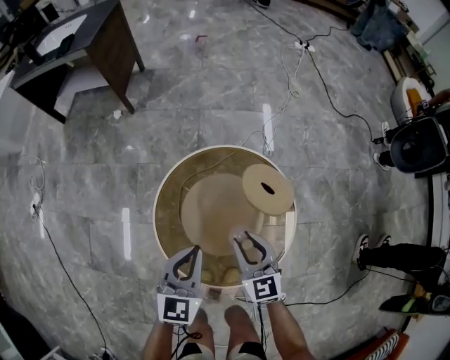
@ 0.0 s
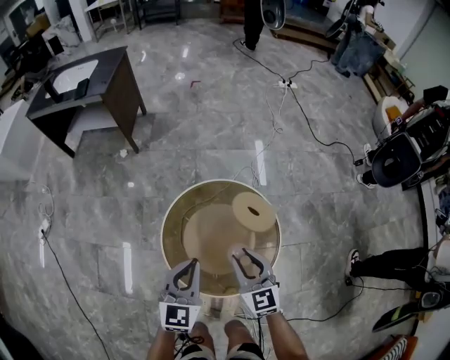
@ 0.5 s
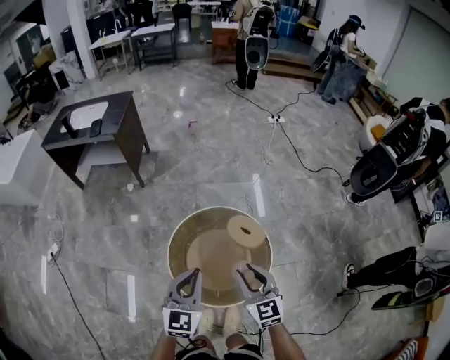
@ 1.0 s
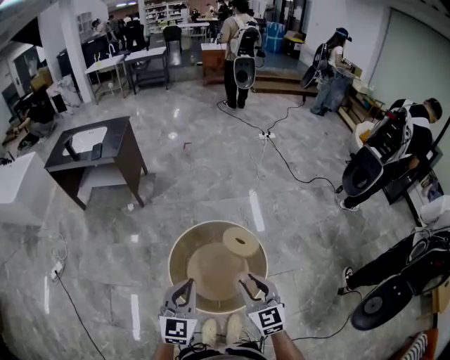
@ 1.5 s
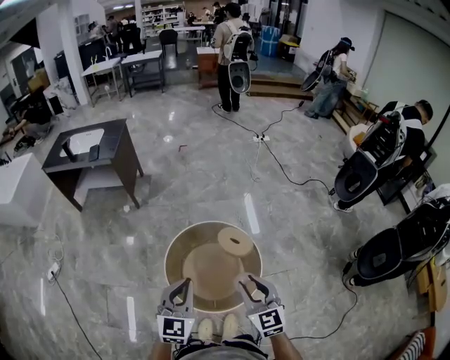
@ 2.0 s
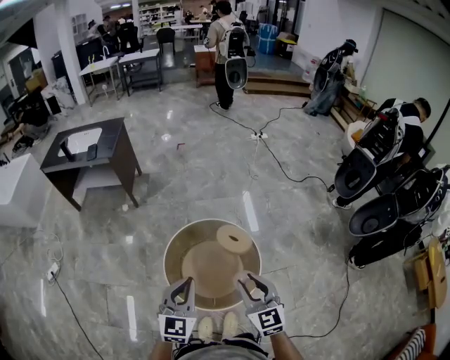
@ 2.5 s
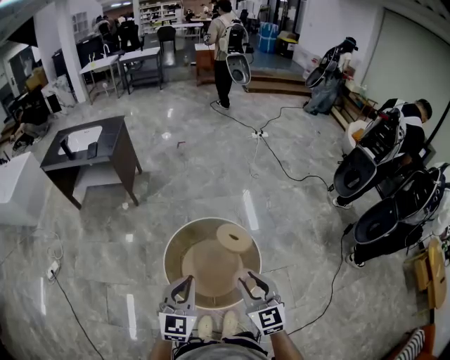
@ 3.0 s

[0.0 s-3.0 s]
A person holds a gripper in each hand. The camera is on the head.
0.0 to 1.5 s: The two grippers go approximately 35 cm upward and backward.
1.5 to 3.0 s: There are only small adjustments of the grippers.

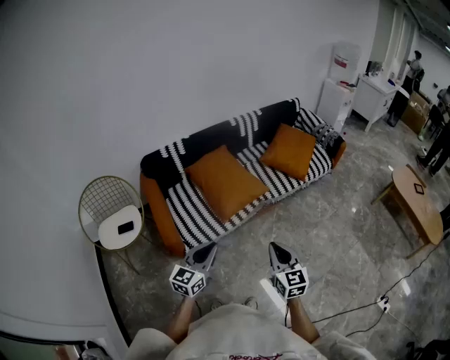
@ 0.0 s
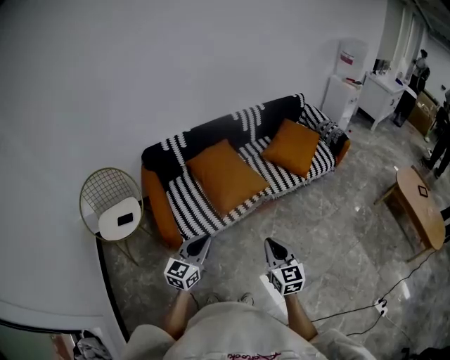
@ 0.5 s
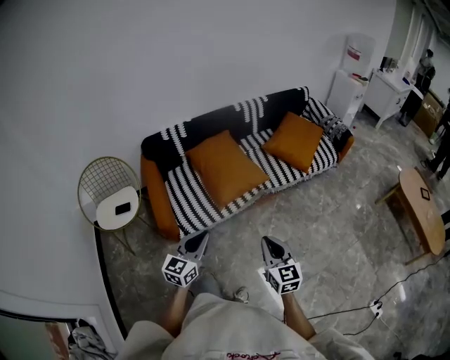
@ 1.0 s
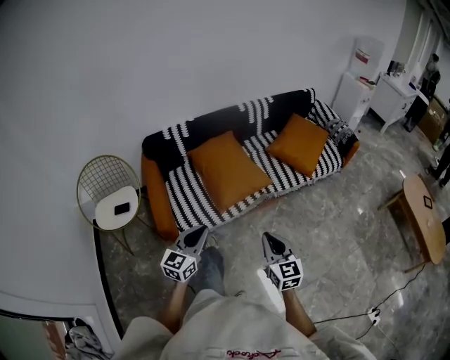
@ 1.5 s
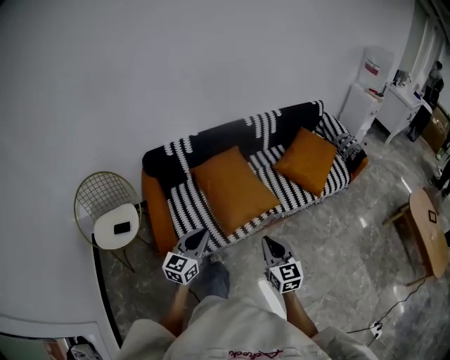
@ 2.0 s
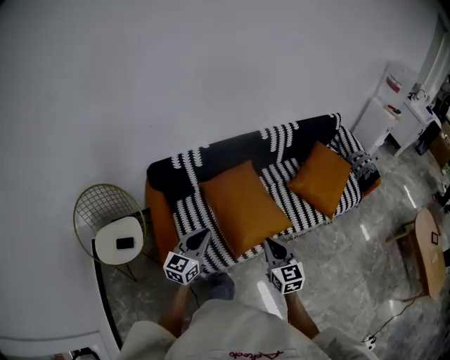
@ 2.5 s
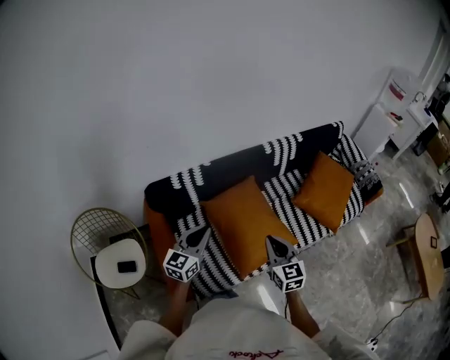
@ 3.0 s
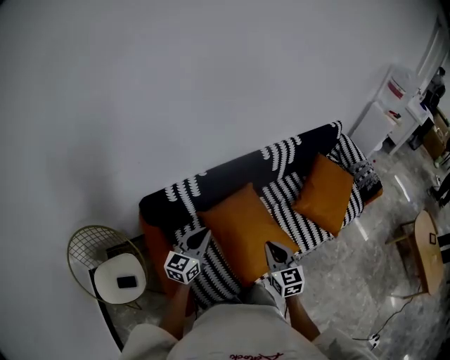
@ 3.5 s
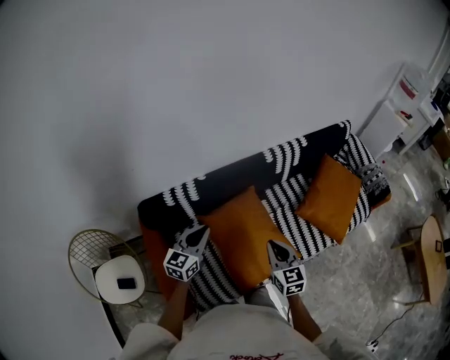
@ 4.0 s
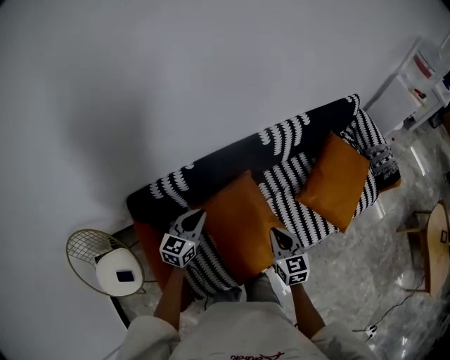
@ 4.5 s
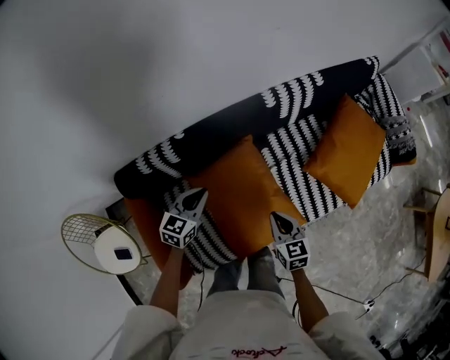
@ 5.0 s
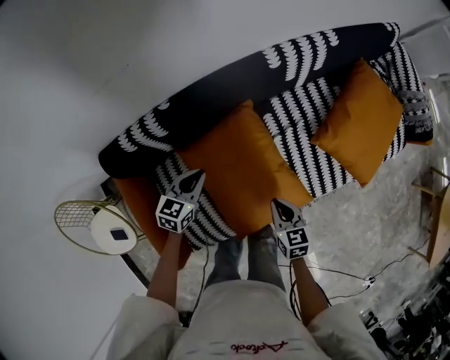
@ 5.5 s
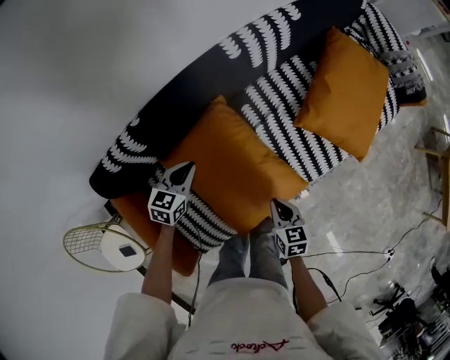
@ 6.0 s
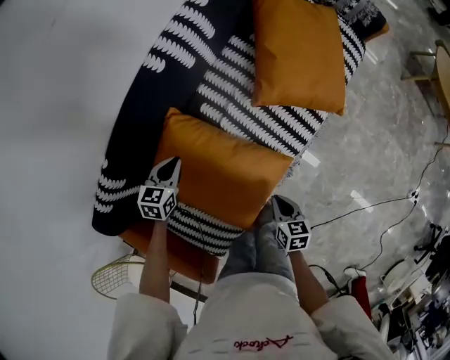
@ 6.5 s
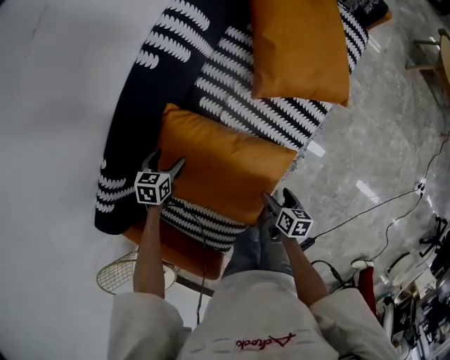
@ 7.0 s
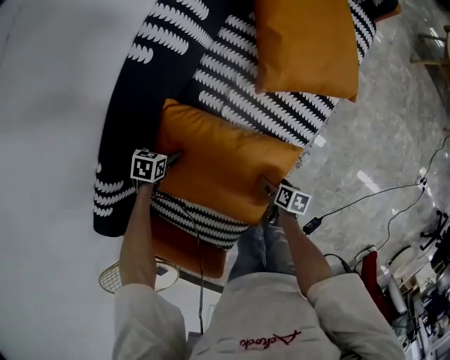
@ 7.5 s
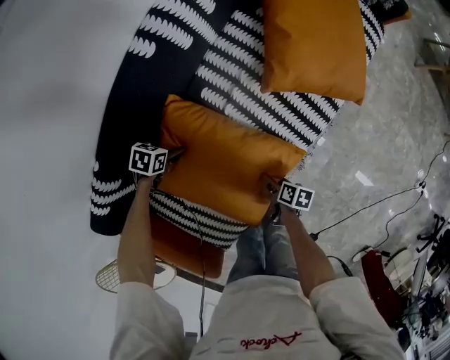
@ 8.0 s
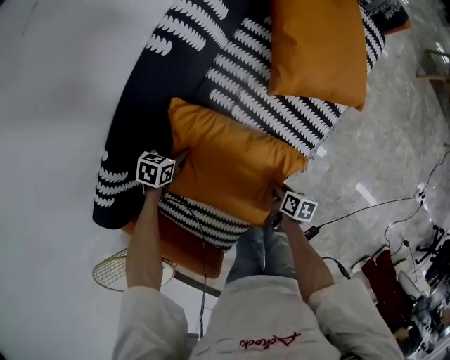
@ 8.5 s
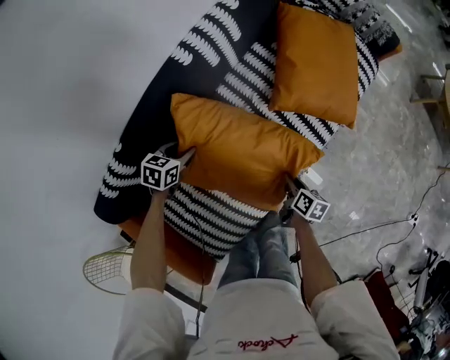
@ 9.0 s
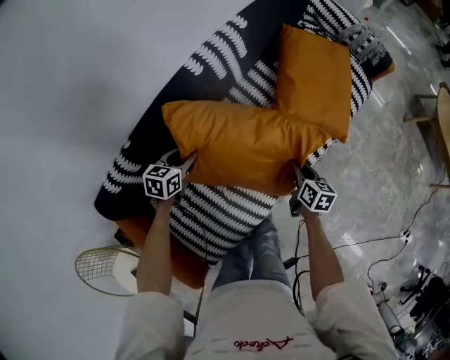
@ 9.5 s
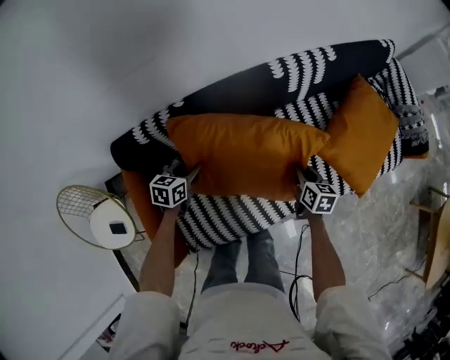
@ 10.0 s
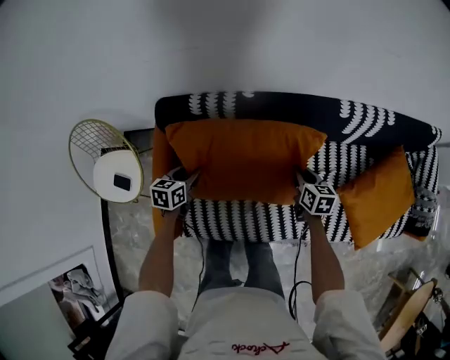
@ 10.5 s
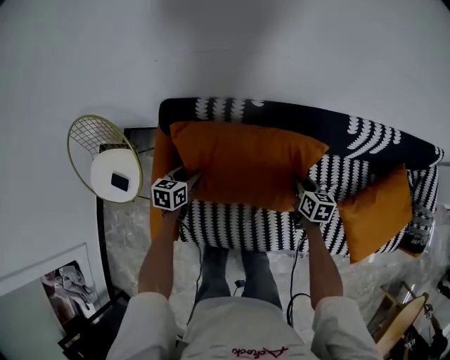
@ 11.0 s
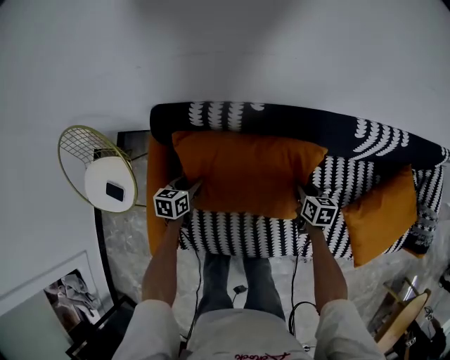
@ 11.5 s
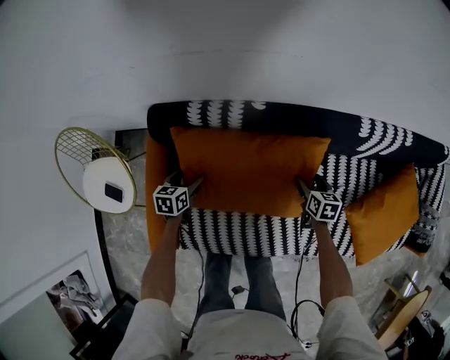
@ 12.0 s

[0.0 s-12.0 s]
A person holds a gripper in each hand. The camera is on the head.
0.0 to 2.0 s: Both grippers travel together forward, some 20 cm.
2.0 to 4.0 s: The pair of grippers is taken forward, approximately 50 cm.
4.0 to 6.0 s: The right gripper moves downward, roughly 30 cm, and turns by roughly 40 degrees, while the left gripper goes about 35 cm downward and forward, and points its fingers roughly 30 degrees further downward.
6.0 to 8.0 s: Both grippers travel together downward, approximately 25 cm. The left gripper rotates approximately 40 degrees, and opens, while the right gripper rotates around the line of its fingers by some 50 degrees, clockwise from behind, and opens up.
8.0 to 10.0 s: The grippers both shift upward by roughly 25 cm. The left gripper rotates about 60 degrees, and closes up; the right gripper rolls counterclockwise, seen from behind, by about 60 degrees, and closes.
10.0 to 12.0 s: The right gripper ends up about 25 cm from where it was, swivels roughly 30 degrees, and opens up, while the left gripper ends up about 25 cm from where it was, swivels roughly 30 degrees, and opens up.

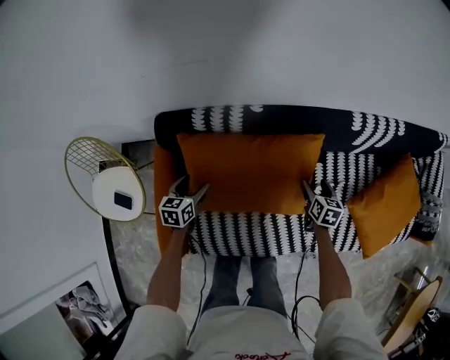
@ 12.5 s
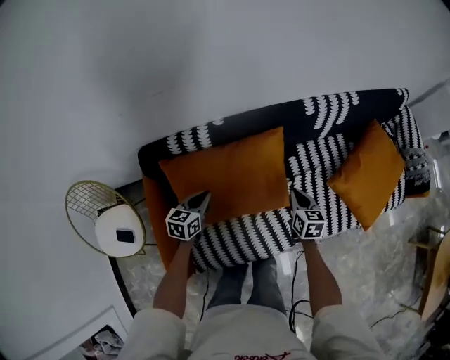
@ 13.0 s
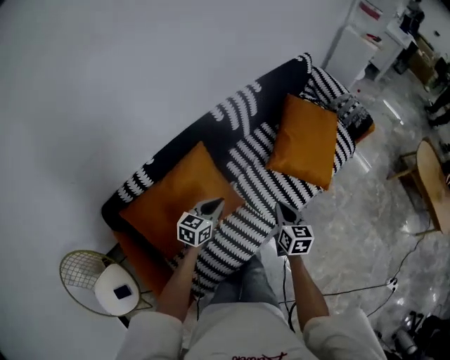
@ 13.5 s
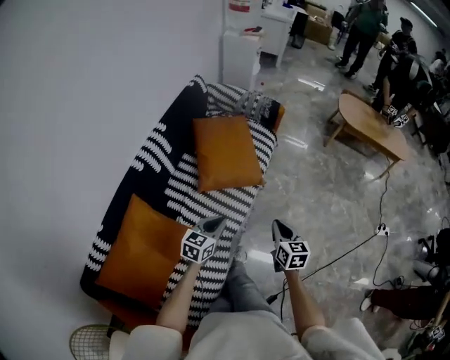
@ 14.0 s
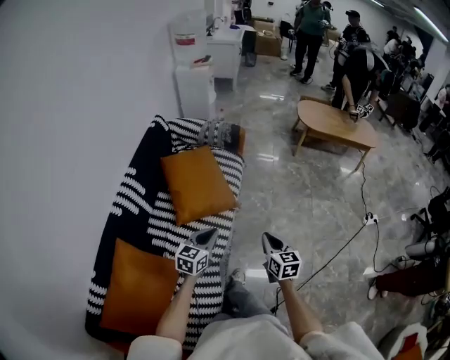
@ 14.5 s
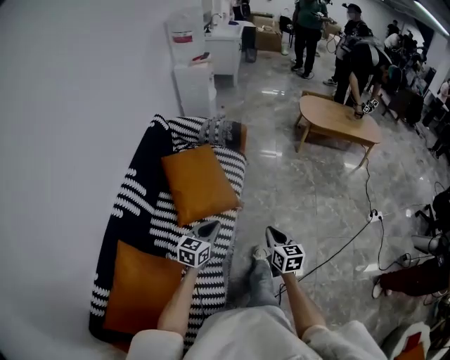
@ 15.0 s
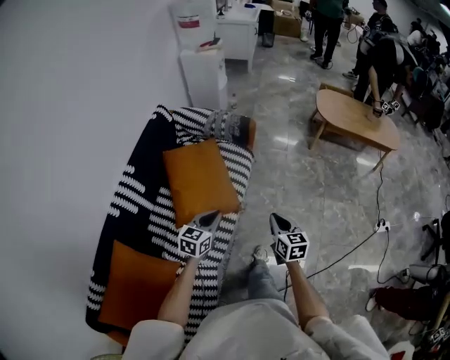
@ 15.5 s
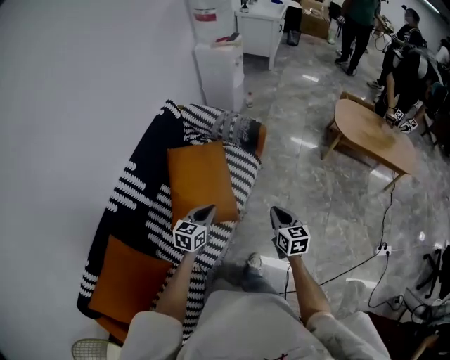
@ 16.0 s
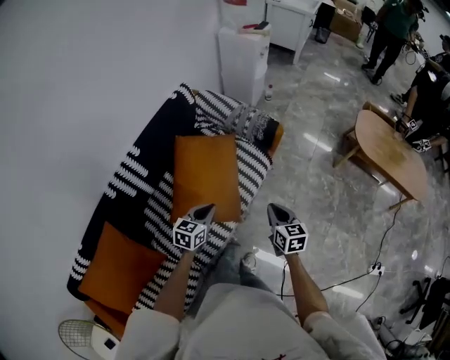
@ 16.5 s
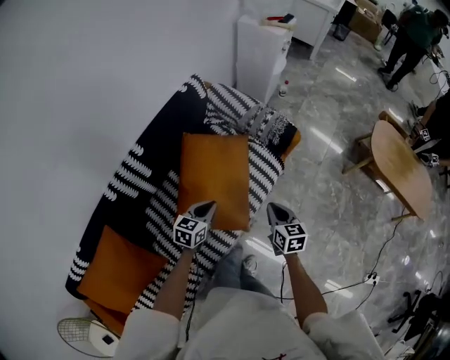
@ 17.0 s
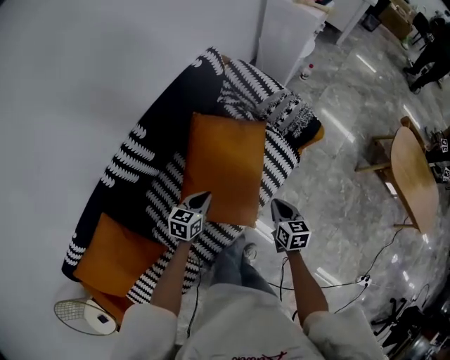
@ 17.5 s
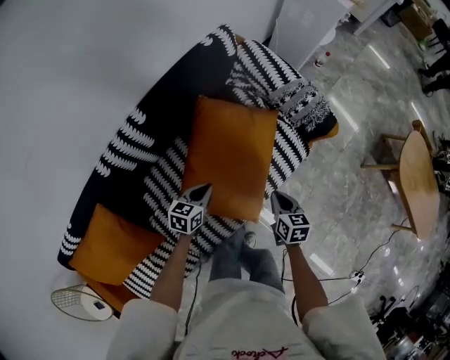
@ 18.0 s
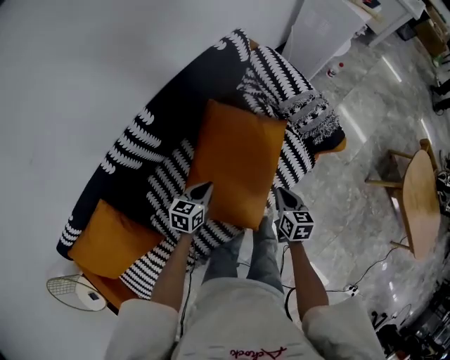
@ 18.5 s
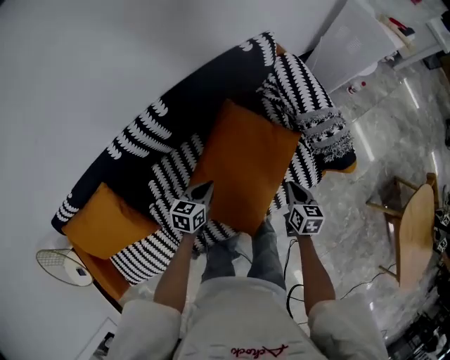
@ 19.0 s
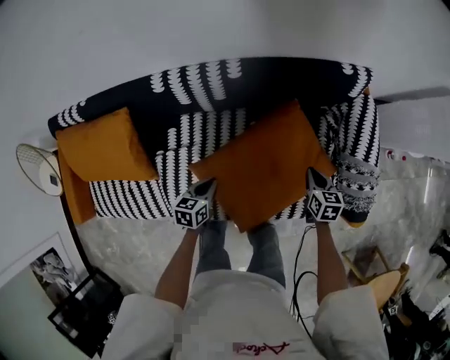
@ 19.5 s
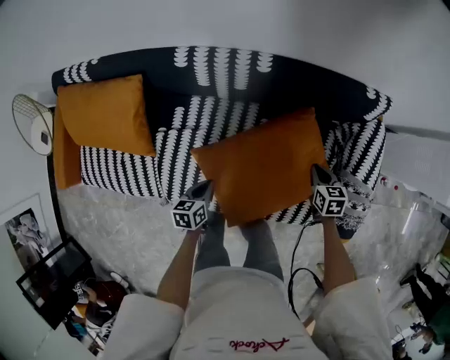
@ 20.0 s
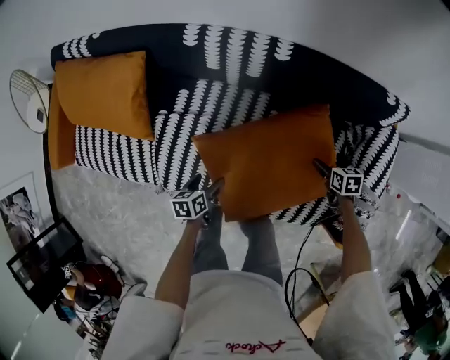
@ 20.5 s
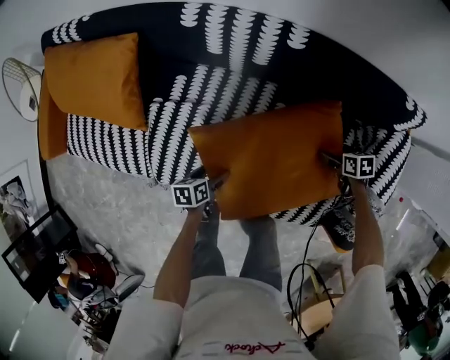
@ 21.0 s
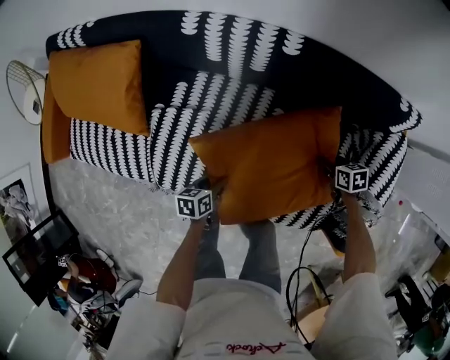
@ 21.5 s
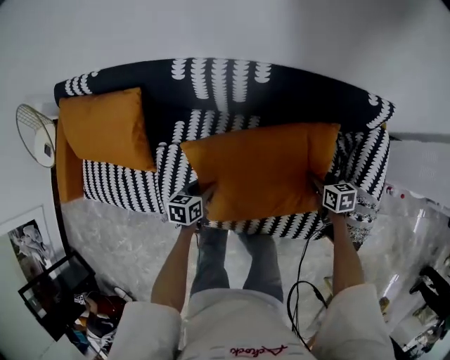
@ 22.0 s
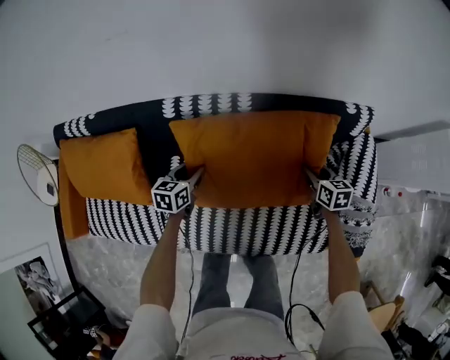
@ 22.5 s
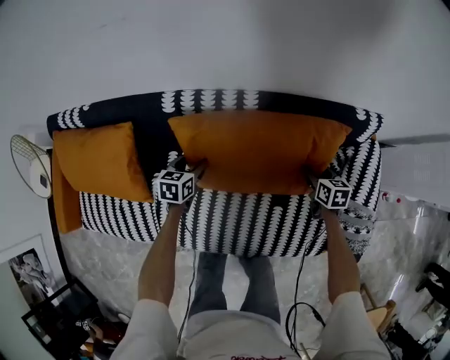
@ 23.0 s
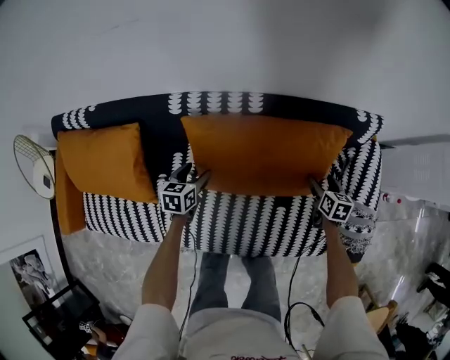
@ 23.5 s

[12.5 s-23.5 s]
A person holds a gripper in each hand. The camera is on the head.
12.5 to 14.5 s: The right gripper shifts by about 60 cm, swivels roughly 70 degrees, and closes up; the left gripper changes place by some 70 cm, rotates about 100 degrees, and closes.
14.5 to 16.0 s: Both grippers move forward, approximately 25 cm.
16.0 to 18.0 s: The left gripper moves downward, to the left and forward, approximately 30 cm, and turns by some 30 degrees; the right gripper moves forward, downward and to the left, about 35 cm, and changes its angle by about 30 degrees.
18.0 to 20.0 s: The left gripper moves approximately 15 cm, and turns by about 70 degrees, while the right gripper shifts by roughly 30 cm, and swivels some 60 degrees.
20.0 to 21.5 s: The two grippers go roughly 10 cm downward. The right gripper turns by about 30 degrees, and opens and closes again; the left gripper opens, then closes once more.
21.5 to 23.5 s: The right gripper goes about 10 cm upward and forward, swivels some 40 degrees, and opens its fingers, while the left gripper goes about 25 cm forward, and rotates roughly 30 degrees.
